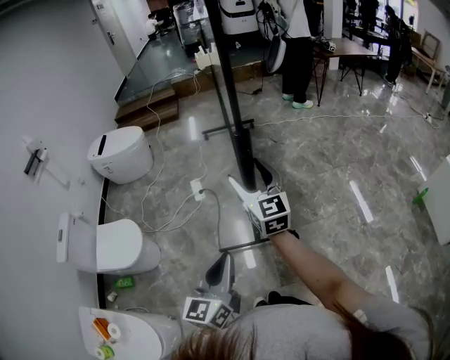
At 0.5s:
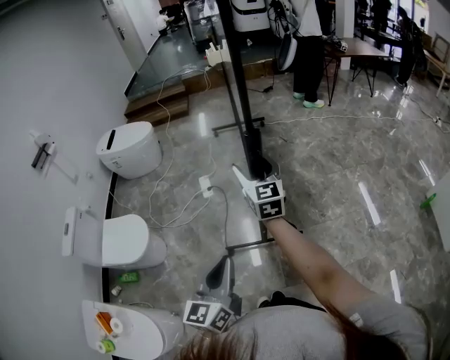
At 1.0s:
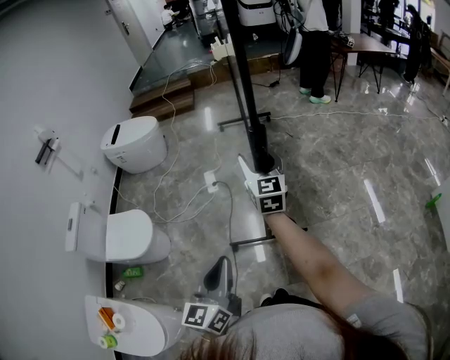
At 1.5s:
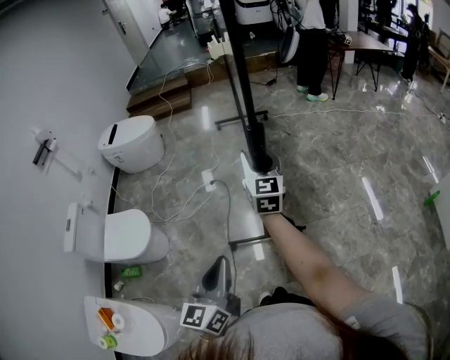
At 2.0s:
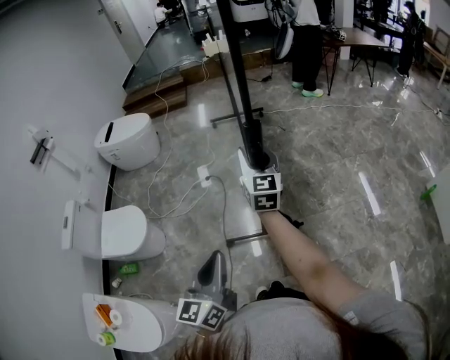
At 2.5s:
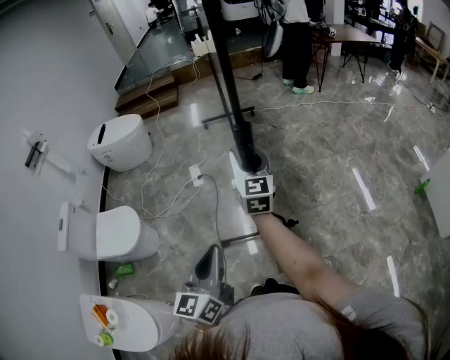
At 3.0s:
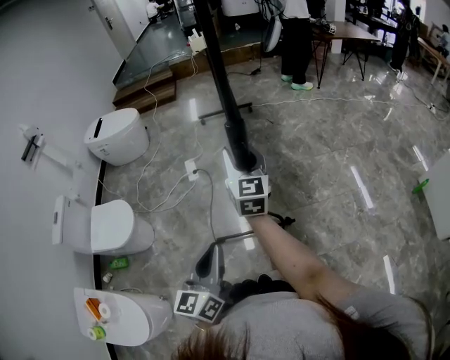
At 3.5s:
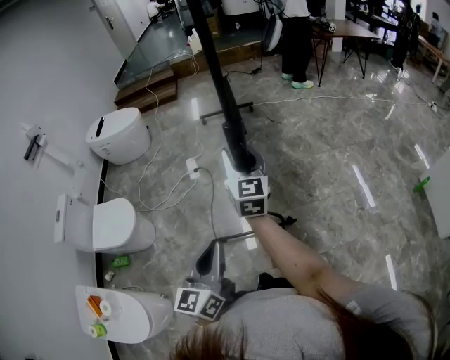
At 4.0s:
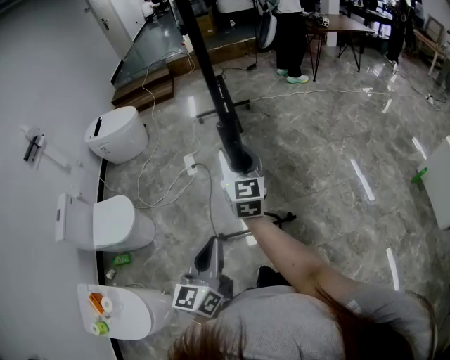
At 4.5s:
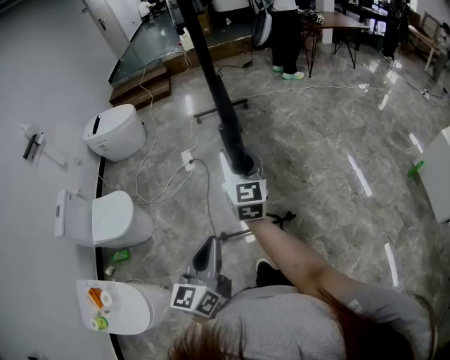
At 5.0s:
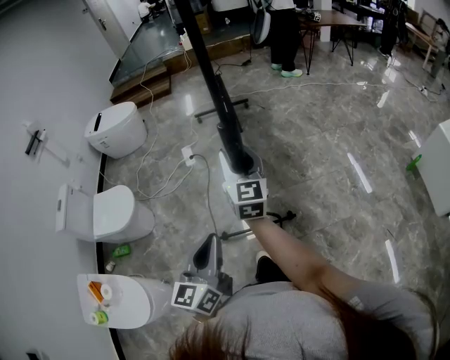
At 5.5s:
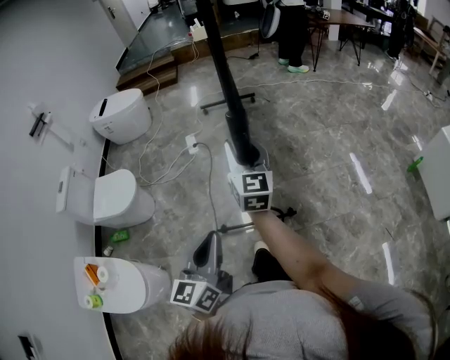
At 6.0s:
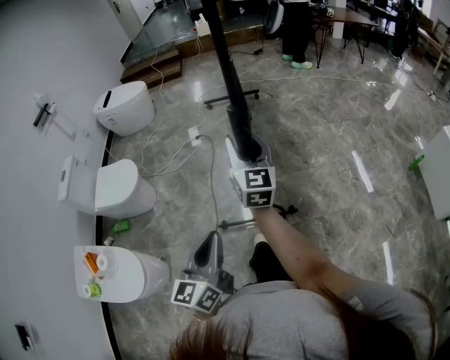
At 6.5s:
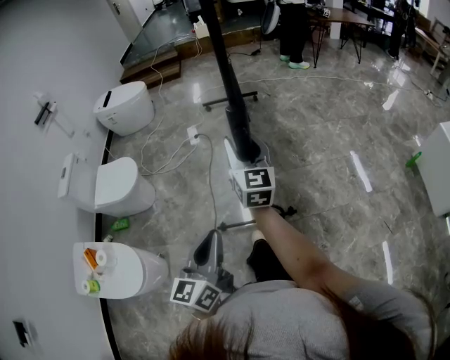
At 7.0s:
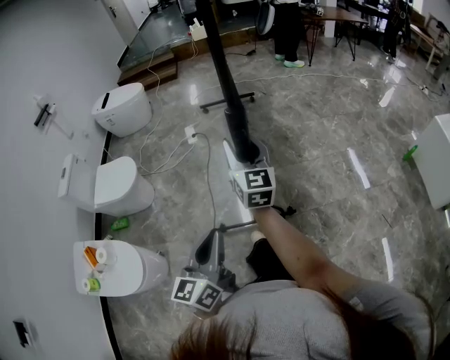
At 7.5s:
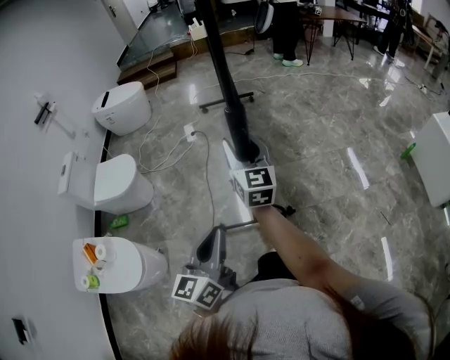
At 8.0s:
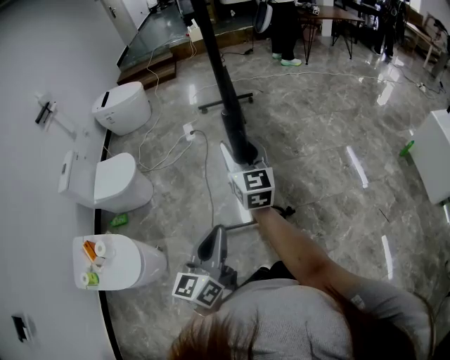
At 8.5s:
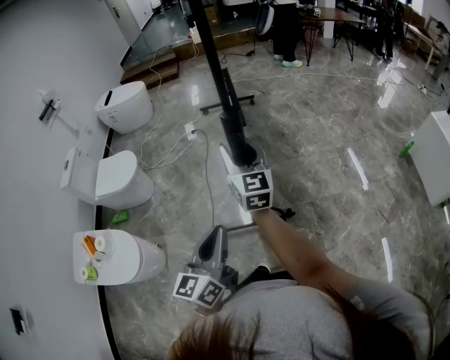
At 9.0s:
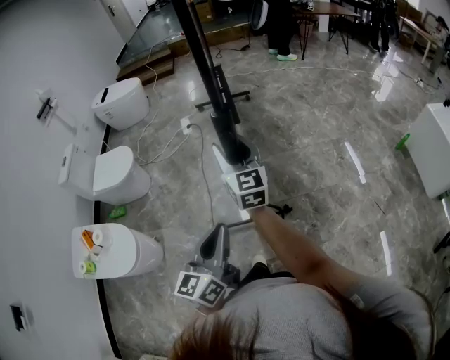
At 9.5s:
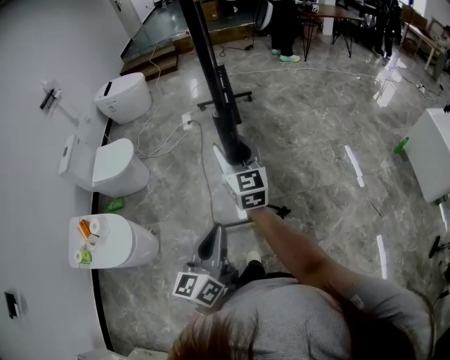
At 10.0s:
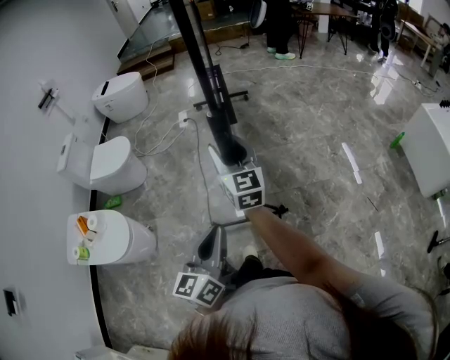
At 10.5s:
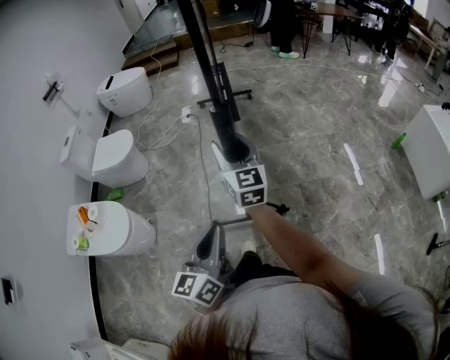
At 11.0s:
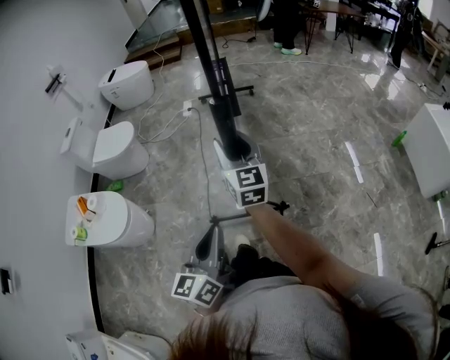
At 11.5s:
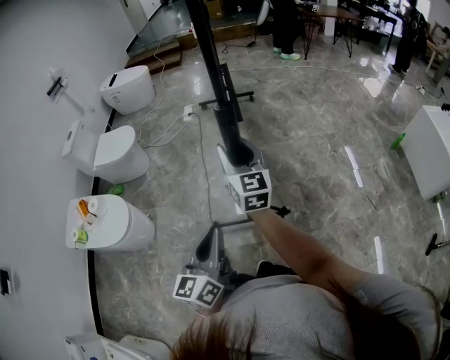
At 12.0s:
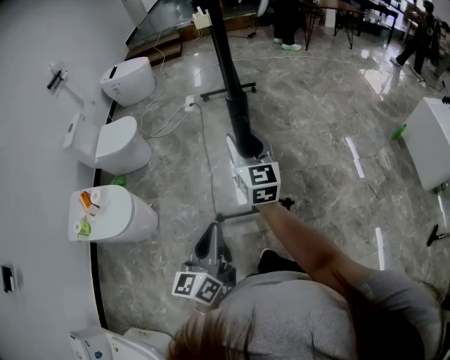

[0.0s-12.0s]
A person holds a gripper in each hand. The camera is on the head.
0.0s to 2.0s: The right gripper shifts by roughly 5 cm, and closes.
2.0s to 4.0s: The left gripper travels to the right by approximately 5 cm. Meanwhile the right gripper shifts about 10 cm backward.
4.0s to 6.0s: The grippers both shift backward by roughly 15 cm.
6.0s to 8.0s: Both grippers move backward, approximately 10 cm.
8.0s to 10.0s: The left gripper travels backward and to the right by about 15 cm. The right gripper moves backward, approximately 15 cm.
10.0s to 12.0s: The grippers both shift backward by about 10 cm.

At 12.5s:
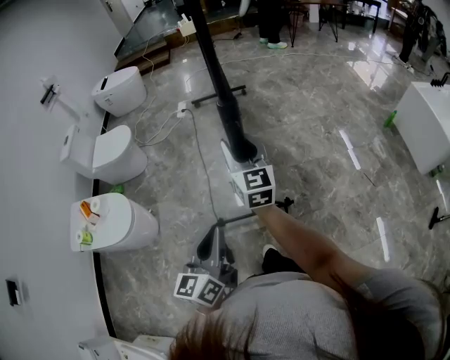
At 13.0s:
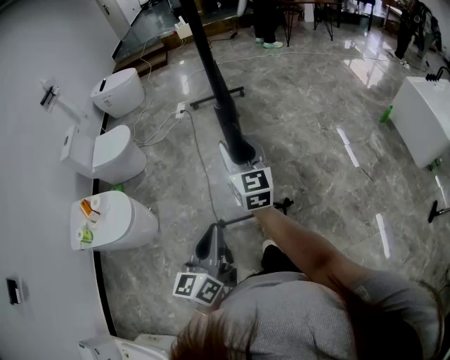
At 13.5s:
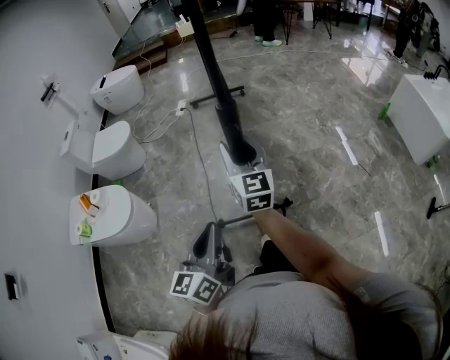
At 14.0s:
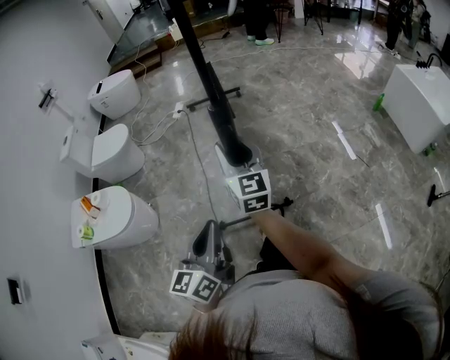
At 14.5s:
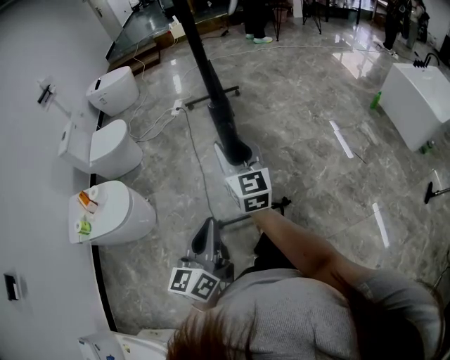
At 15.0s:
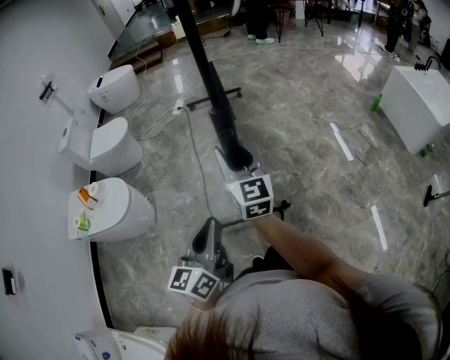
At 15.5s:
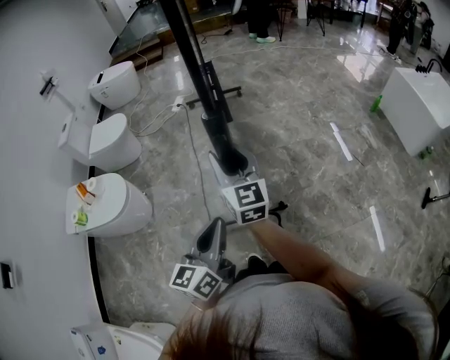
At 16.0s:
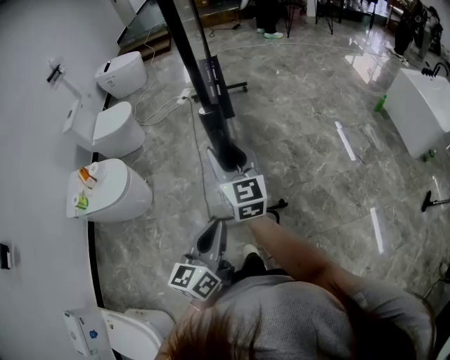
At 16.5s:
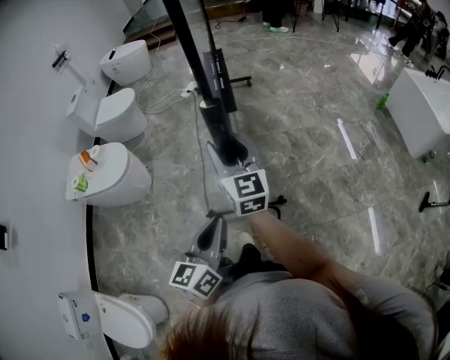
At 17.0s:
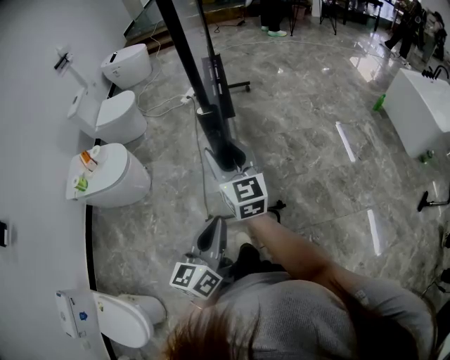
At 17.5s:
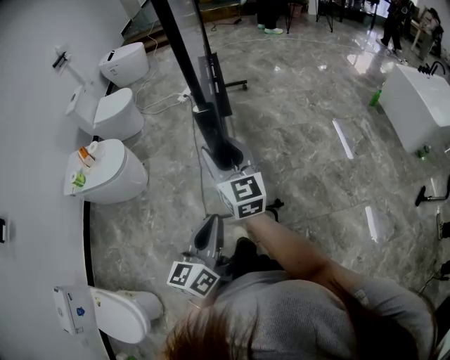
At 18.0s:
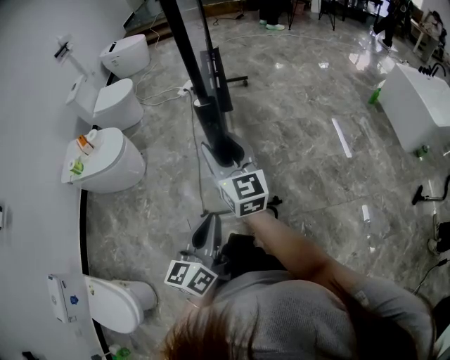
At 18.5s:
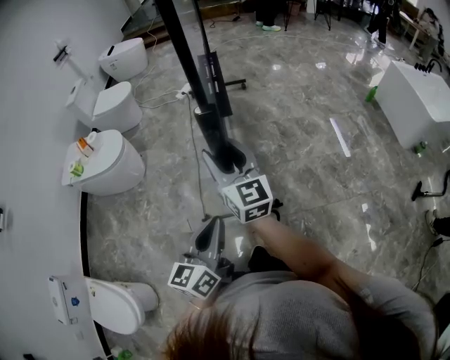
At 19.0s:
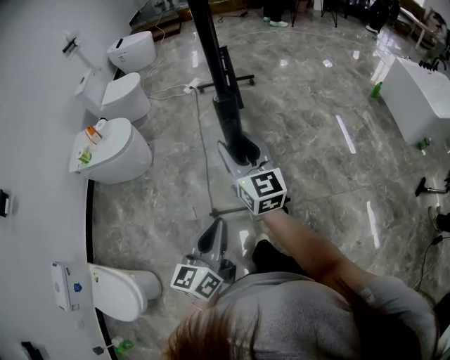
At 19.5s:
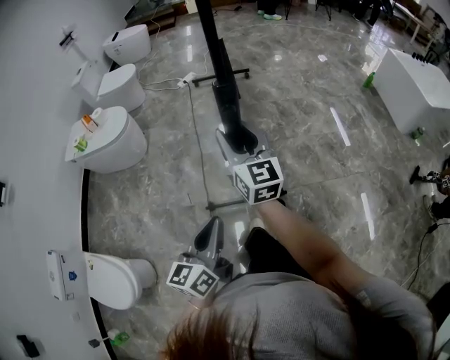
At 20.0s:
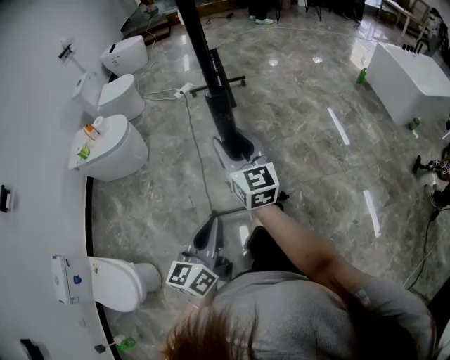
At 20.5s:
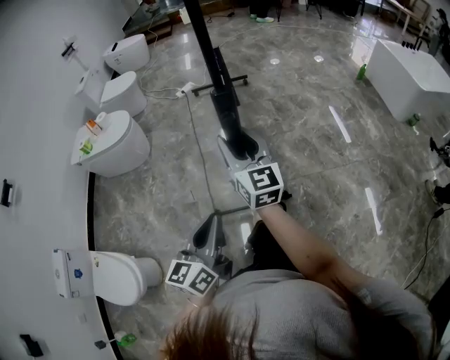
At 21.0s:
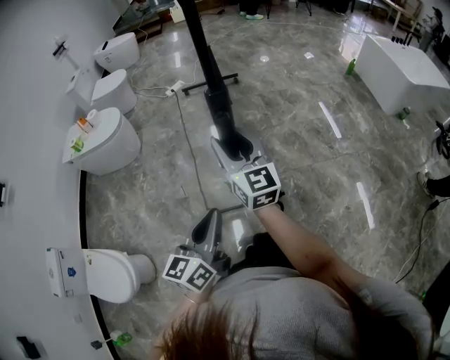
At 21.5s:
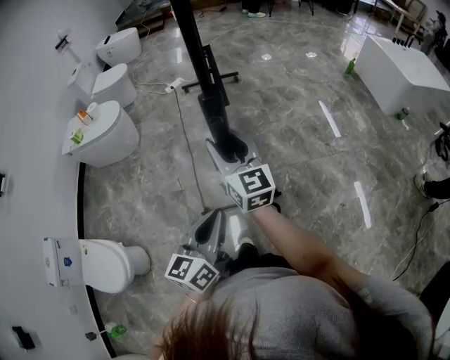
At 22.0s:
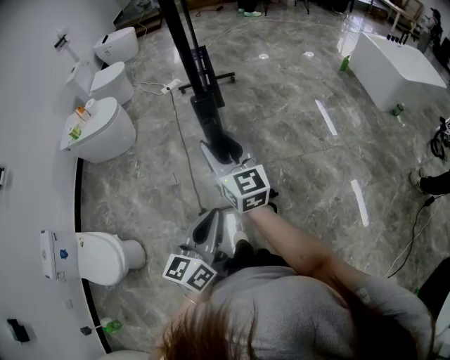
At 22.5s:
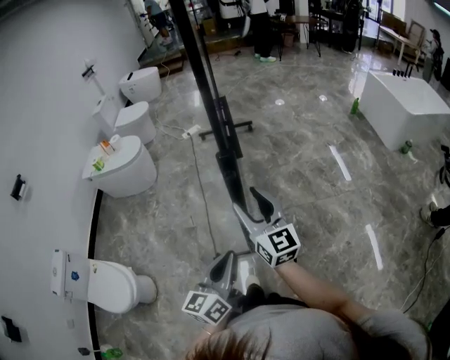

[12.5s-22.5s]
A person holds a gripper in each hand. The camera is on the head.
12.5s to 14.5s: Both grippers move backward, approximately 15 cm.
14.5s to 16.5s: The right gripper heads backward, covering some 15 cm. Meanwhile the left gripper heads backward and to the right, covering about 15 cm.
16.5s to 18.5s: Both grippers travel together backward, approximately 15 cm.
18.5s to 20.5s: The grippers both shift backward by about 20 cm.
20.5s to 22.5s: The right gripper travels backward by about 20 cm. Meanwhile the left gripper shifts about 15 cm backward and to the right.

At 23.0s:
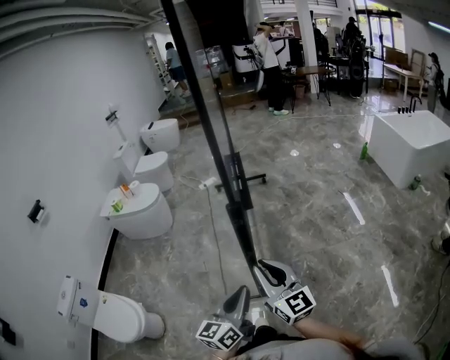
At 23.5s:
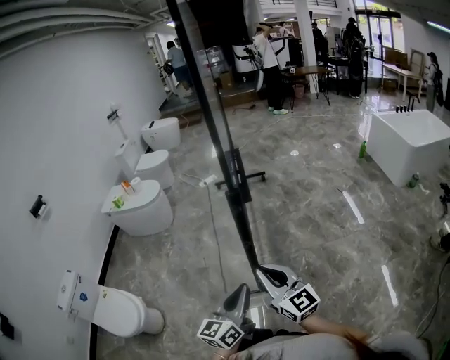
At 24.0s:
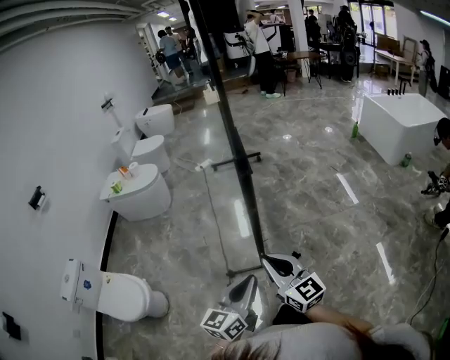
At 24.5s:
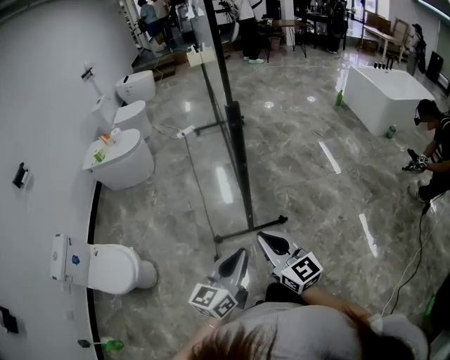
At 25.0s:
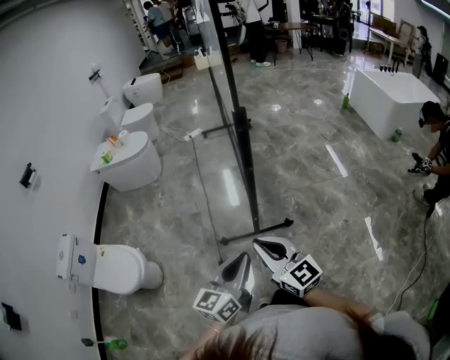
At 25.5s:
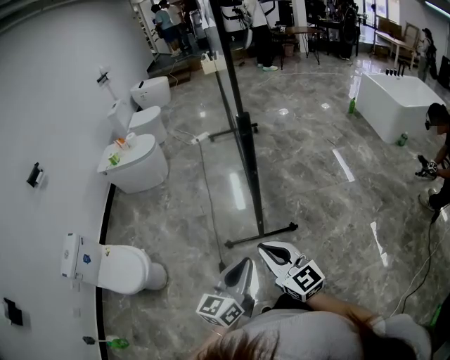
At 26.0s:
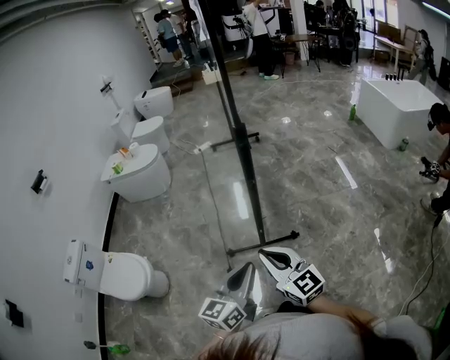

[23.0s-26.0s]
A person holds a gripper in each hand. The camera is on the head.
23.0s to 24.5s: Both grippers move backward, about 20 cm.
24.5s to 26.0s: The grippers make only small movements.

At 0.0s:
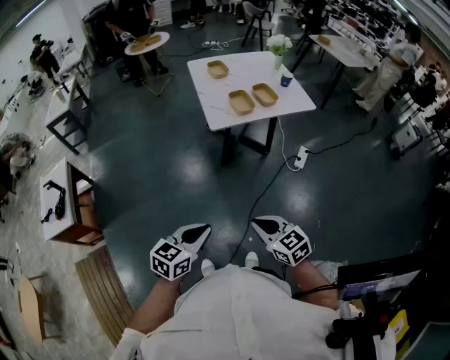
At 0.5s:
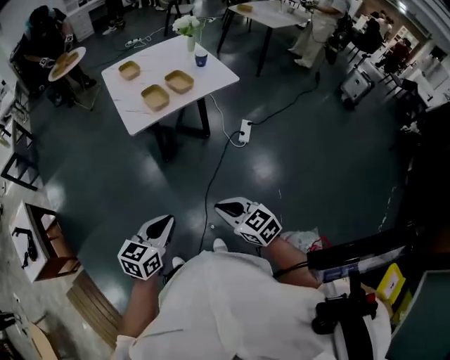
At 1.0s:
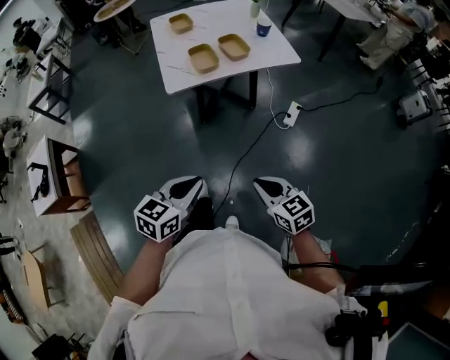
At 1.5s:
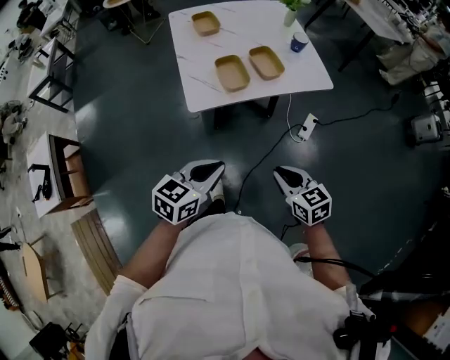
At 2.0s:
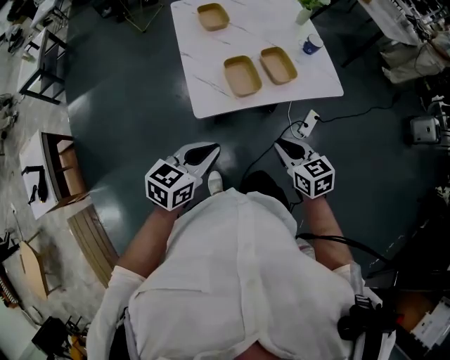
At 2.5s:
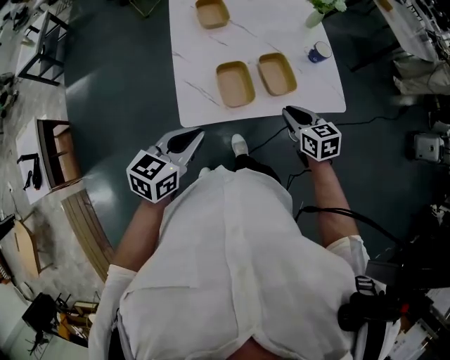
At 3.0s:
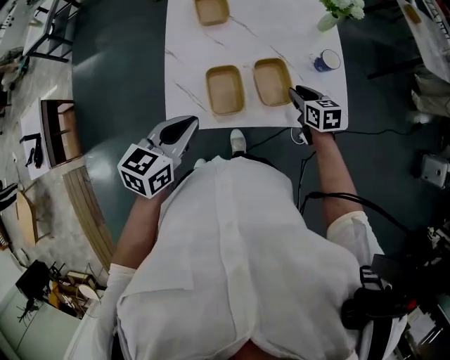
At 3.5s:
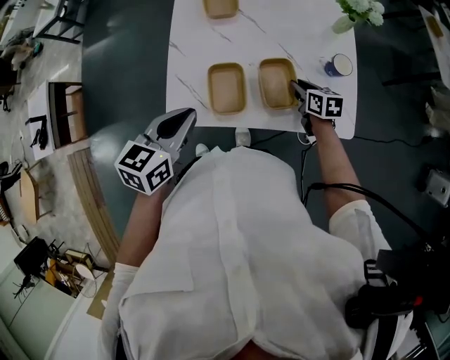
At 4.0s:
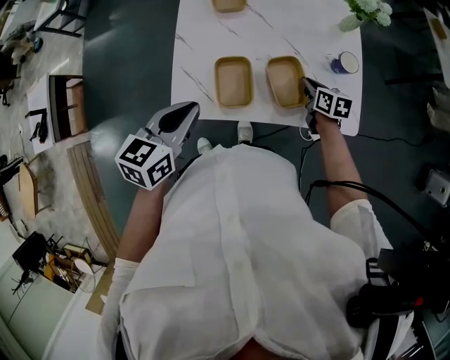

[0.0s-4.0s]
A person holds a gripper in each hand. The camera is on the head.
0.0s to 2.0s: Both grippers travel together forward, some 40 cm.
2.0s to 4.0s: The left gripper is displaced forward by about 20 cm, and rotates roughly 30 degrees, while the right gripper moves forward, to the right and downward, some 40 cm.
